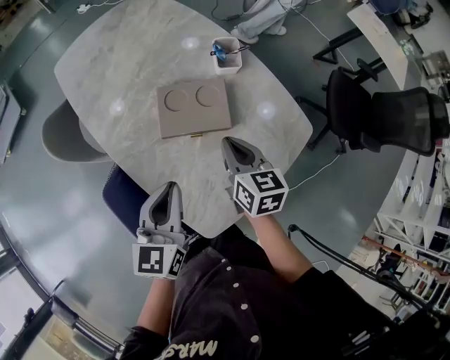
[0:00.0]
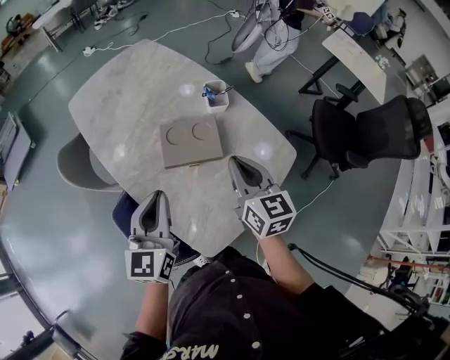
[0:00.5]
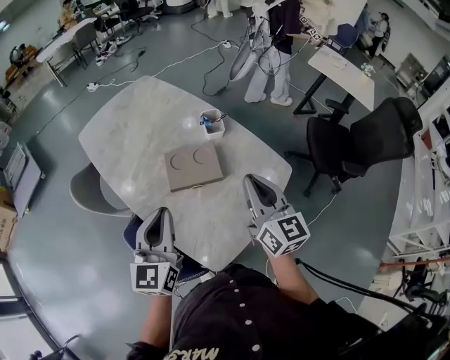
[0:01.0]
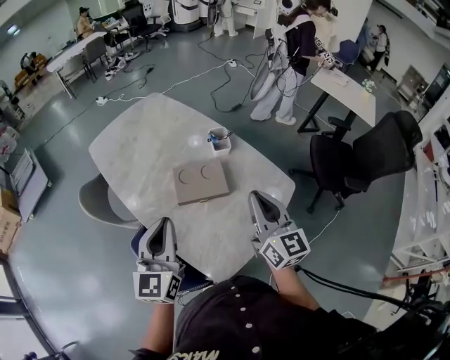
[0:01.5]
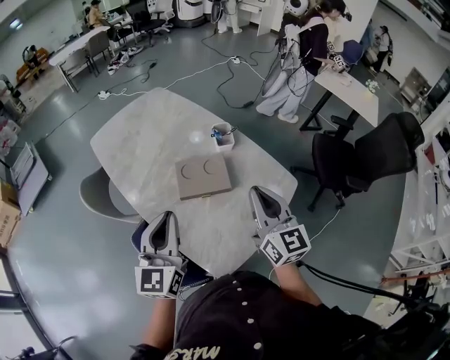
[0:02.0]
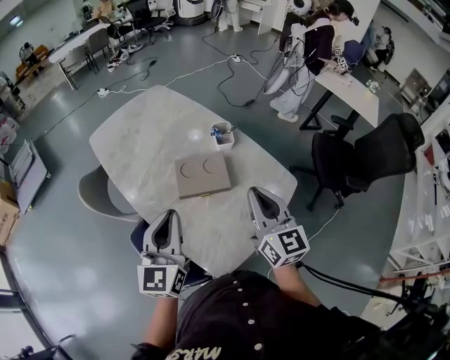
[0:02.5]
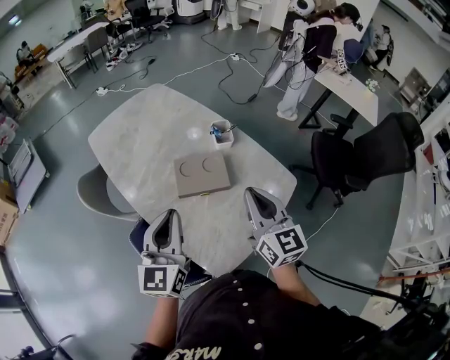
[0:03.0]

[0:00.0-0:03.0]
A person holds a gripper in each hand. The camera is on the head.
0:00.0 to 0:01.5: The right gripper moves upward and backward, roughly 20 cm, and points its fingers some 30 degrees further upward; the left gripper moves upward, about 15 cm.
0:01.5 to 0:03.0: There are only small adjustments of the grippers.

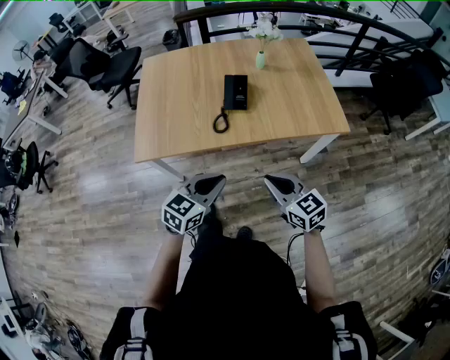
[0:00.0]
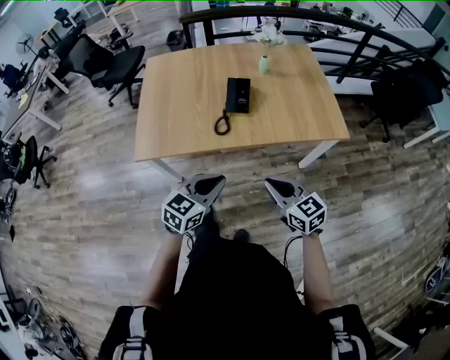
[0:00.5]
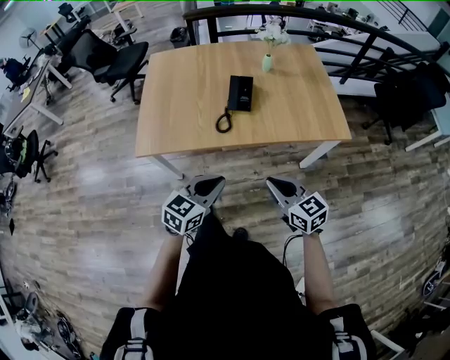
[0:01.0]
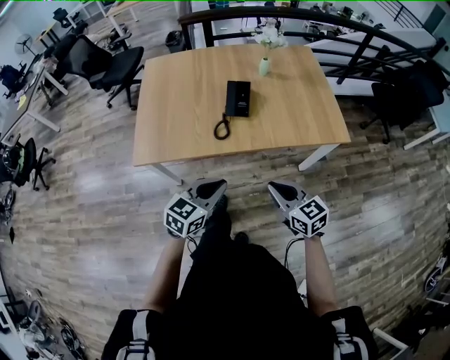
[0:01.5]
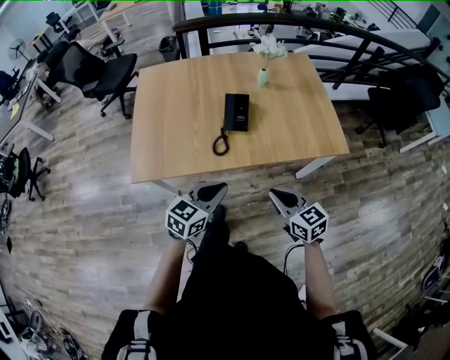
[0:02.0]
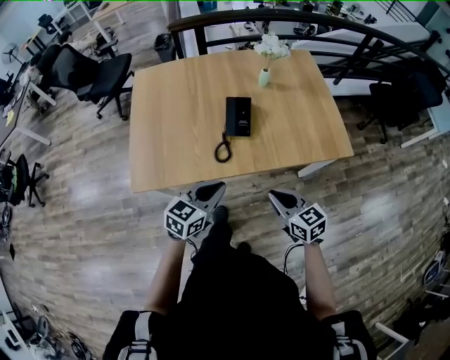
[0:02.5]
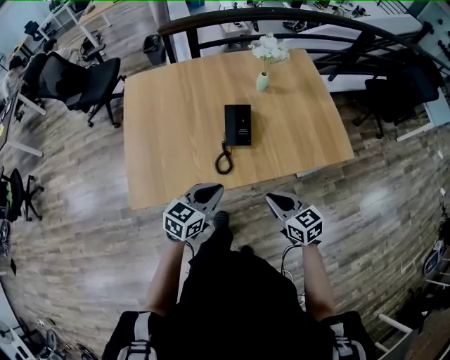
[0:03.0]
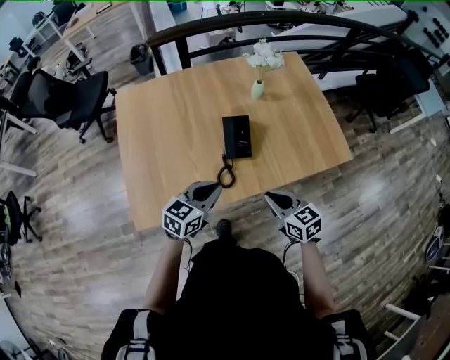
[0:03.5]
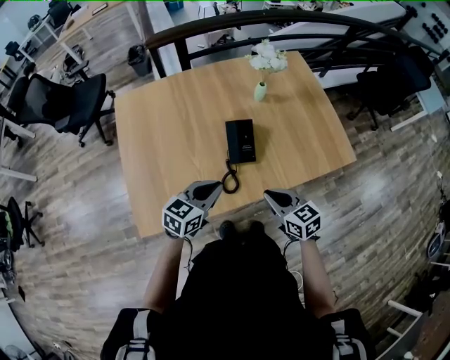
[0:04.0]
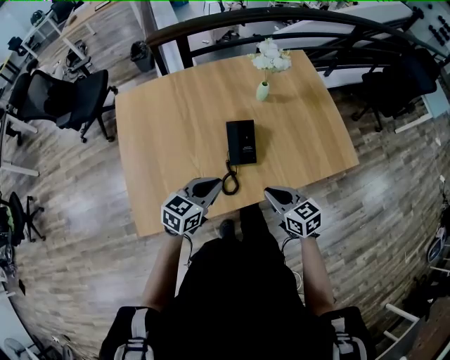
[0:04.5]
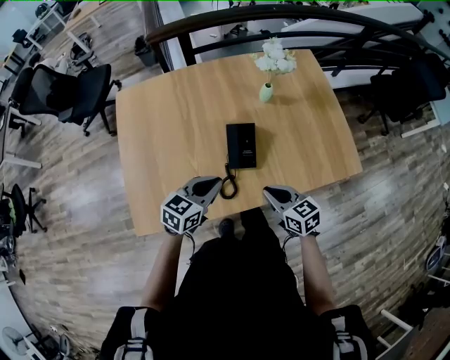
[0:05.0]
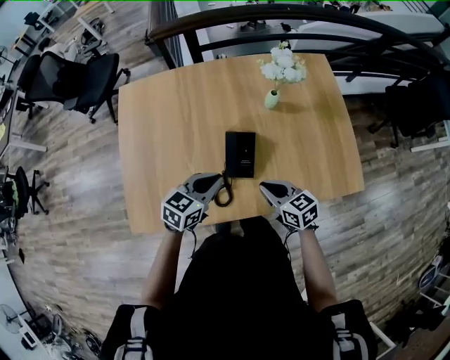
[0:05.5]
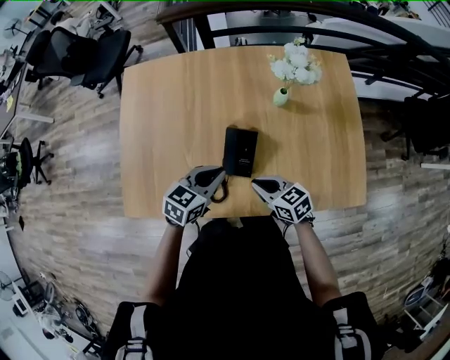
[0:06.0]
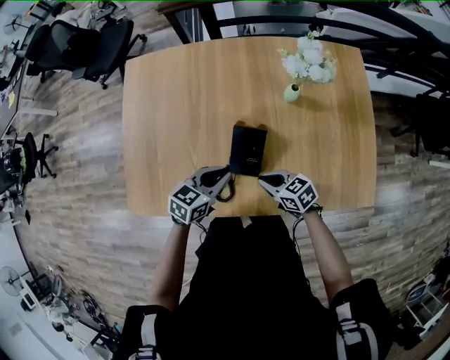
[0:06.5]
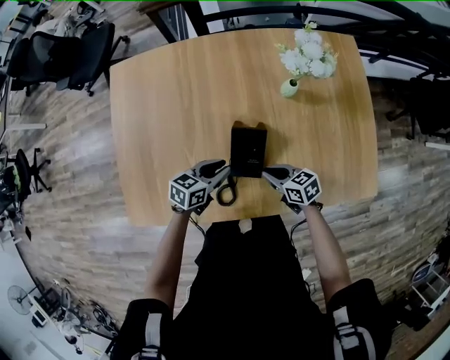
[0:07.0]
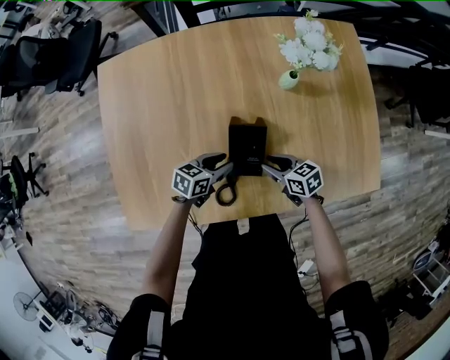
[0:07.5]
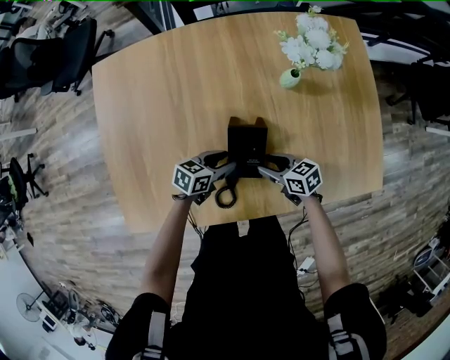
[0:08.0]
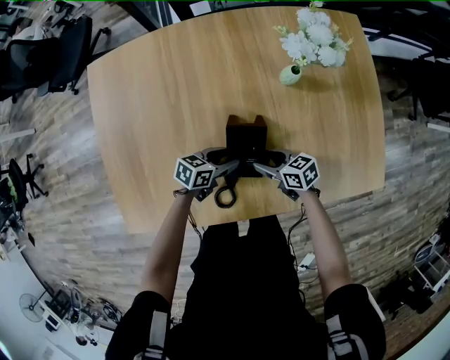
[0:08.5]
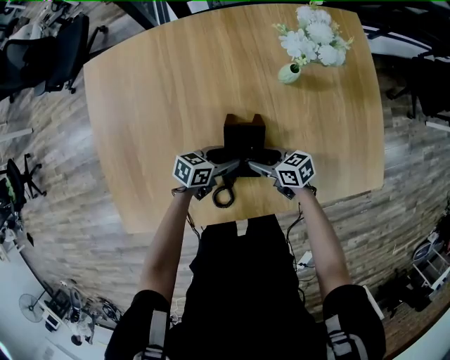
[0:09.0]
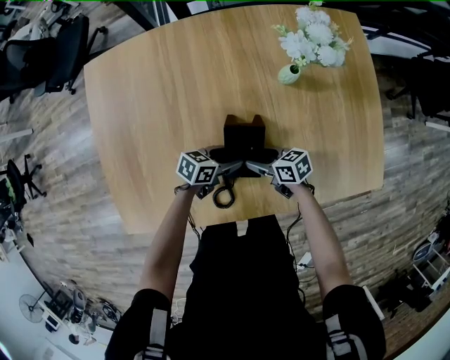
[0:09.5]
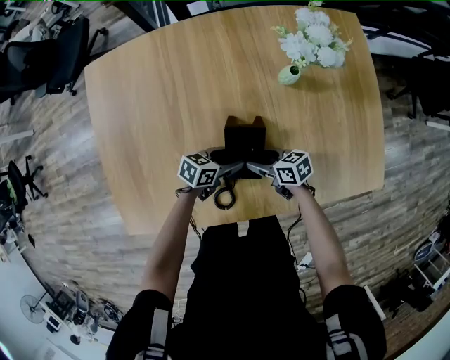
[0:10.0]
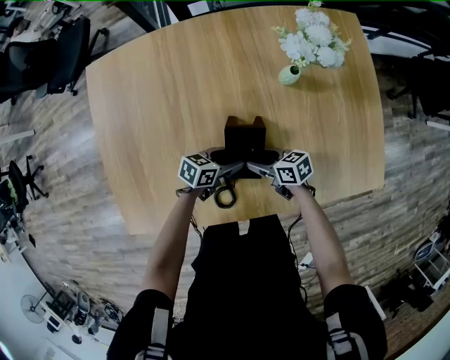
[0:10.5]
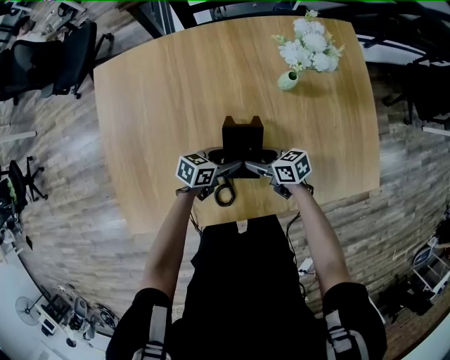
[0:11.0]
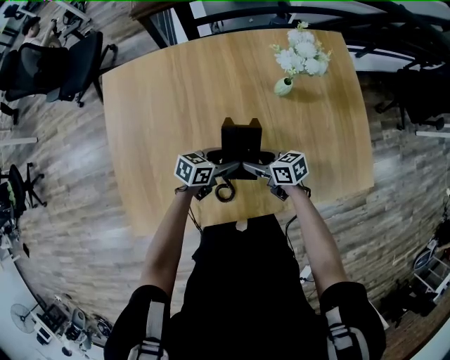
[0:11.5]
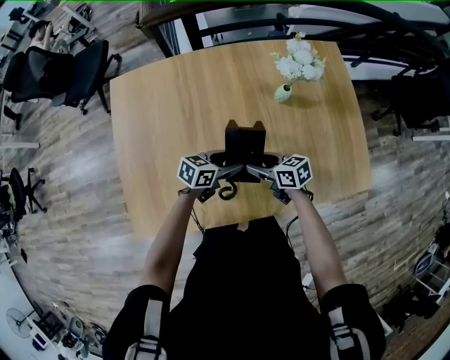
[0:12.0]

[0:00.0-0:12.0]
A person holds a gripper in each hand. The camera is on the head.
0:00.0 to 0:02.0: The two grippers go approximately 10 cm forward.
0:02.0 to 0:04.0: Both grippers move forward and to the left, some 20 cm.
0:04.0 to 0:06.0: The left gripper is displaced forward and to the right by roughly 15 cm. The right gripper heads forward and downward, covering roughly 15 cm, and rotates about 30 degrees.
0:06.0 to 0:08.0: Both grippers move downward, approximately 15 cm. The left gripper changes its angle by about 30 degrees, and opens up; the right gripper opens its fingers.
0:08.0 to 0:10.0: The grippers make only small movements.
0:10.0 to 0:12.0: Both grippers move upward, roughly 10 cm.

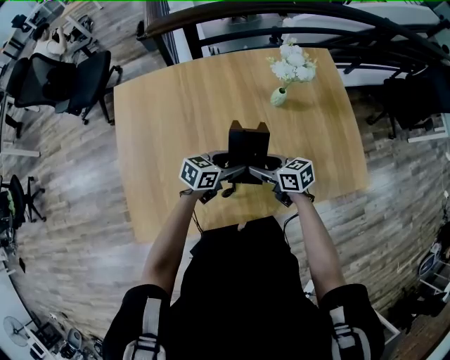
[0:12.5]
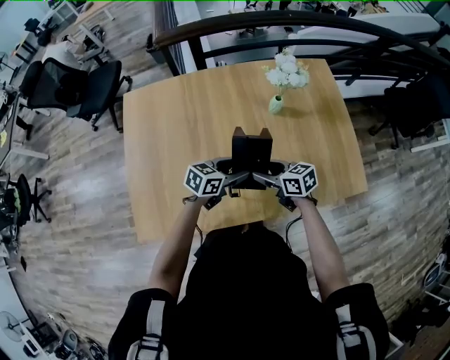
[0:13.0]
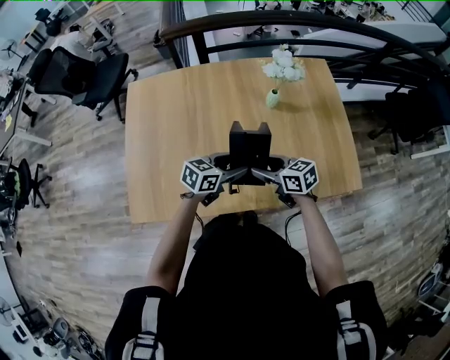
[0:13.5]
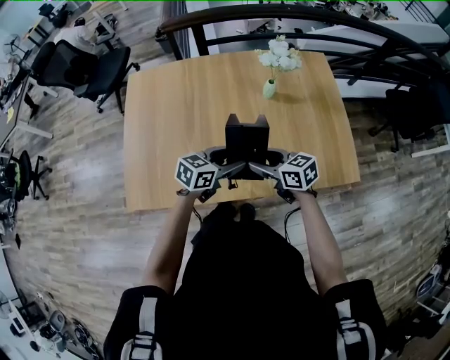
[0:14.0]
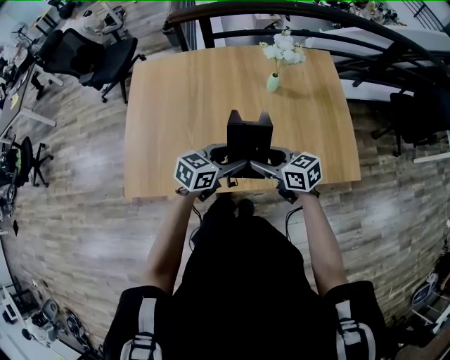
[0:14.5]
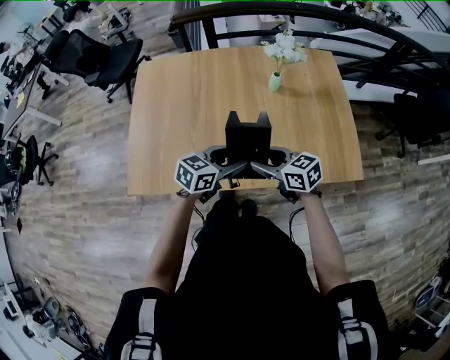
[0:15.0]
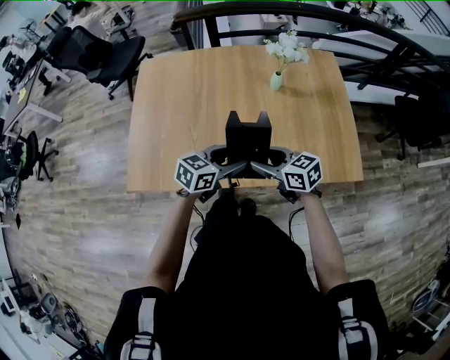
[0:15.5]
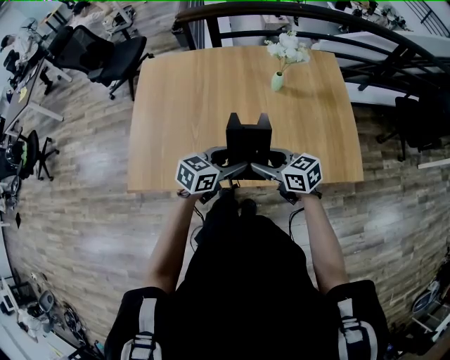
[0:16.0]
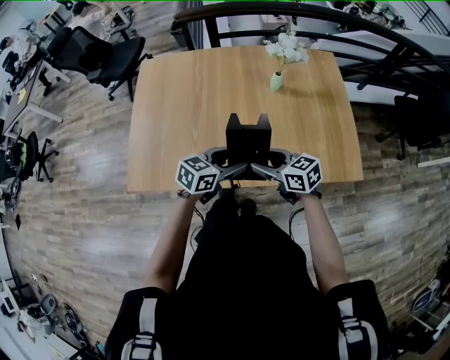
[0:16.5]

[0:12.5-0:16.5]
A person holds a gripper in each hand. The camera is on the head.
0:12.5 to 0:14.5: The left gripper moves about 20 cm. Meanwhile the right gripper ends up about 15 cm from where it was.
0:14.5 to 0:16.5: The grippers stay close to where they were, moving slightly.

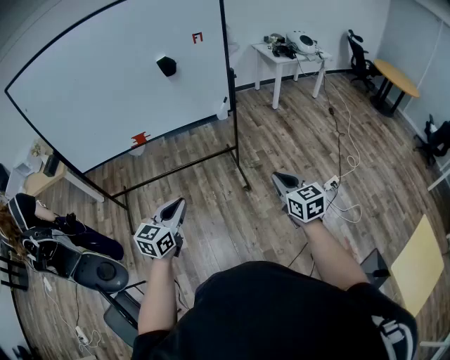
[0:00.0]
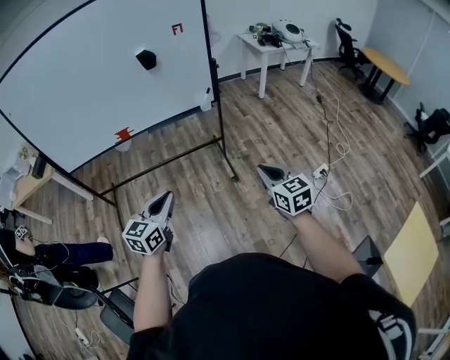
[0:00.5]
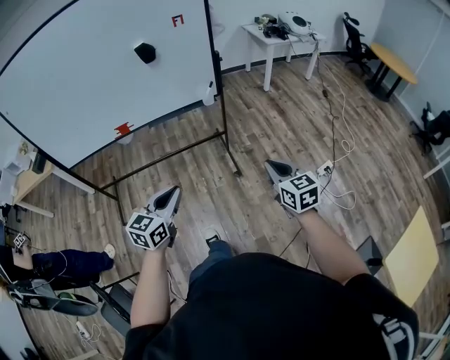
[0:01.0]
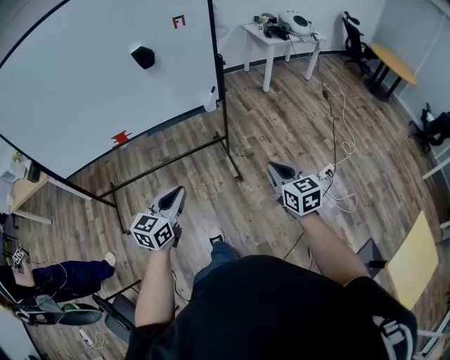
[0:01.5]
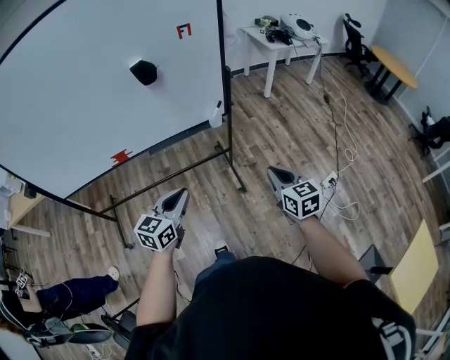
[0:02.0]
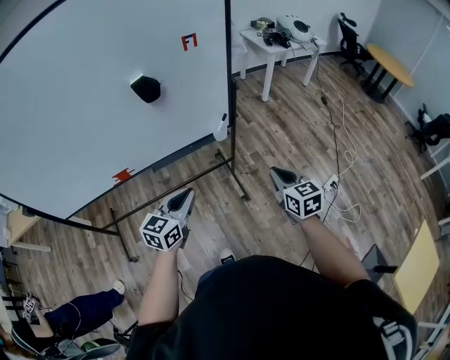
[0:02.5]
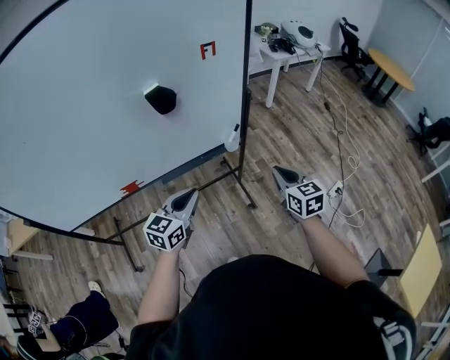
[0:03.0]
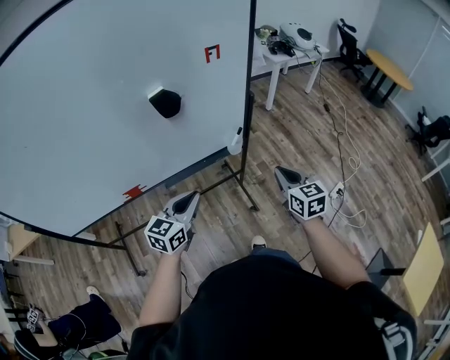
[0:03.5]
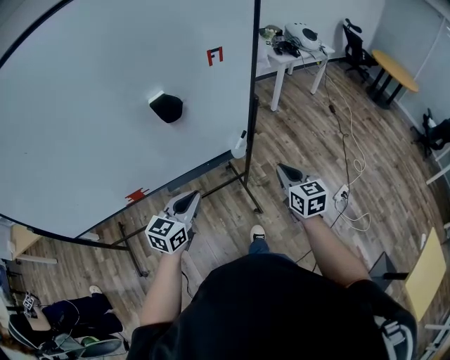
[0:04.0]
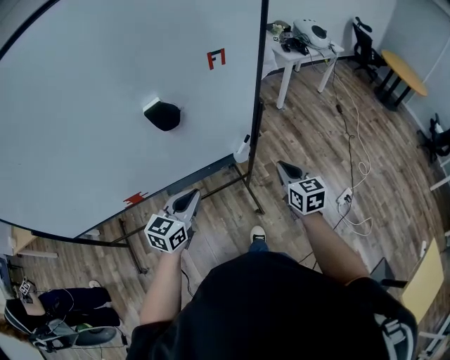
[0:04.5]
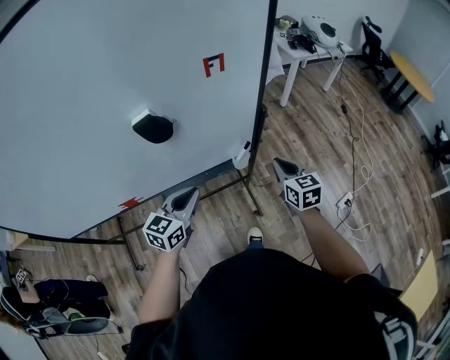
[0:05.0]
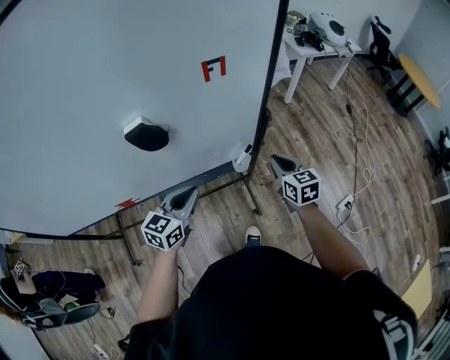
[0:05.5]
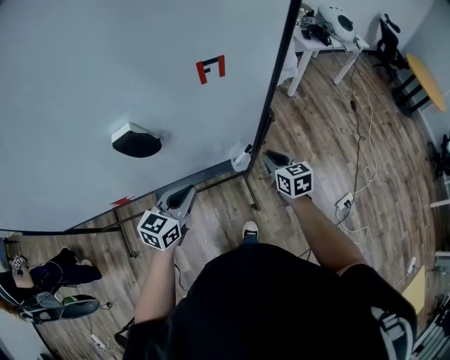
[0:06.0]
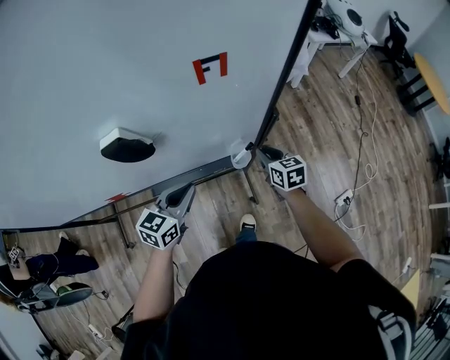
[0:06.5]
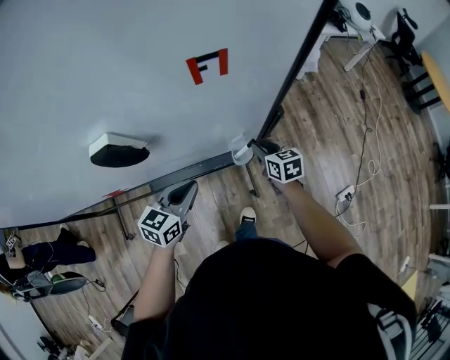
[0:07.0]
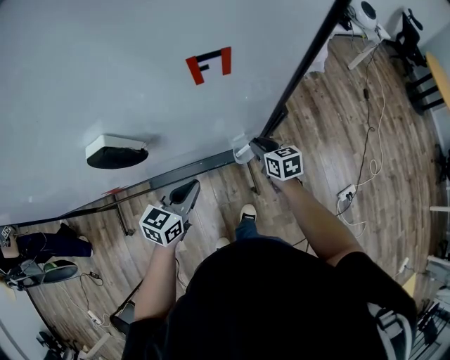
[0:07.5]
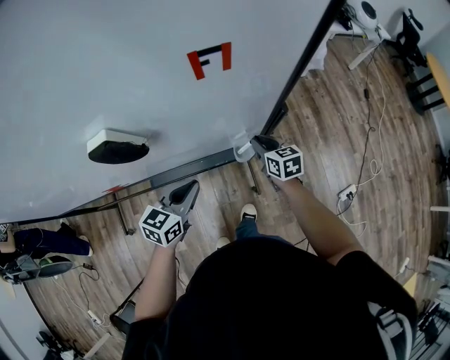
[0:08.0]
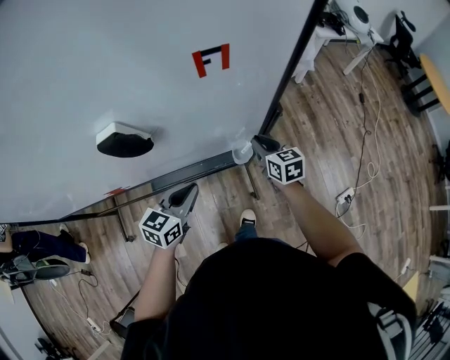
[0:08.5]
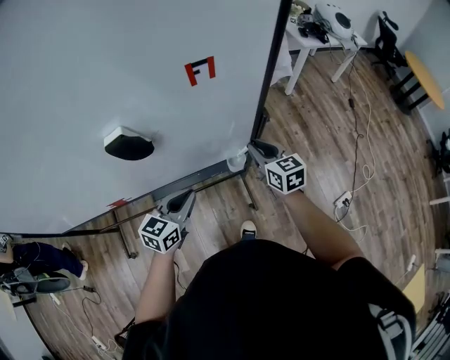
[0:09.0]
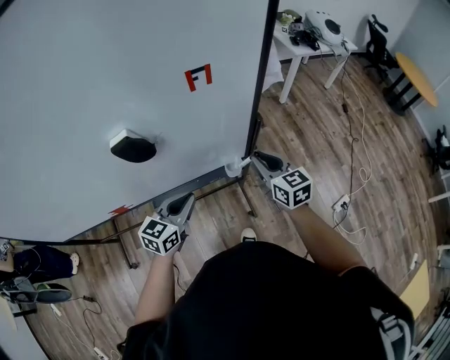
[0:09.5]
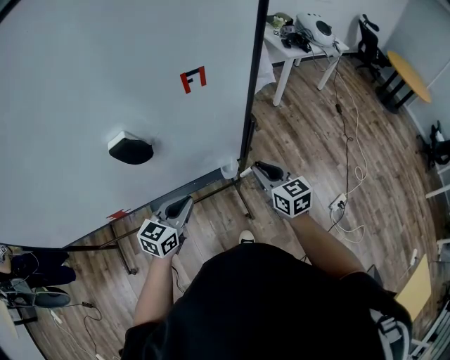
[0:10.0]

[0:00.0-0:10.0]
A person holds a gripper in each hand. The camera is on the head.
0:00.0 to 0:02.0: The grippers both shift forward by about 25 cm.
0:02.0 to 0:04.0: The two grippers go roughly 20 cm forward and to the left.
0:04.0 to 0:06.0: The right gripper travels forward and downward by some 25 cm; the left gripper is displaced forward by some 15 cm.
0:06.0 to 0:08.0: The right gripper heads downward and forward, covering roughly 10 cm; the left gripper shifts approximately 5 cm downward.
0:08.0 to 0:10.0: The right gripper heads upward and backward, covering some 20 cm; the left gripper is displaced upward by about 5 cm.
